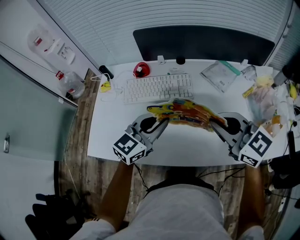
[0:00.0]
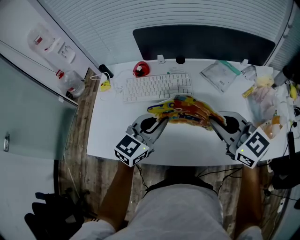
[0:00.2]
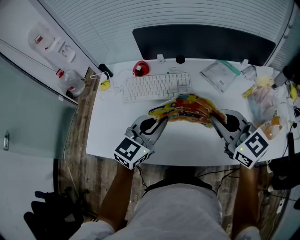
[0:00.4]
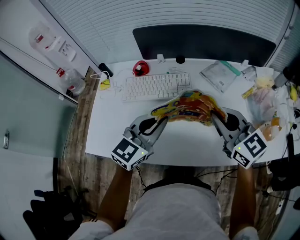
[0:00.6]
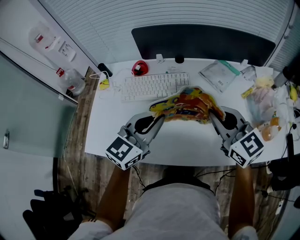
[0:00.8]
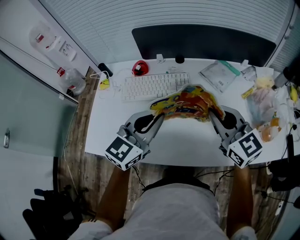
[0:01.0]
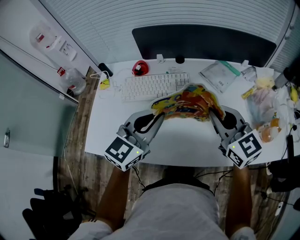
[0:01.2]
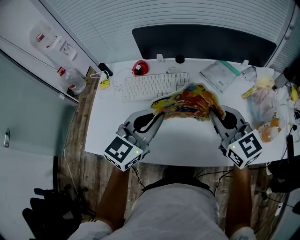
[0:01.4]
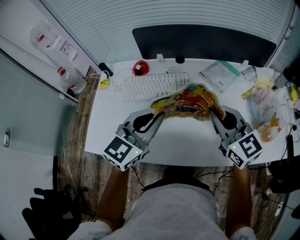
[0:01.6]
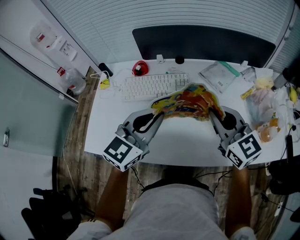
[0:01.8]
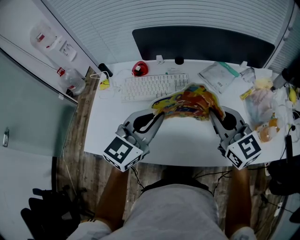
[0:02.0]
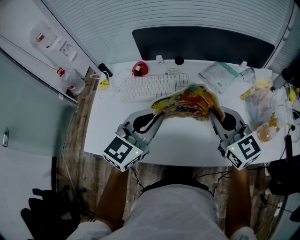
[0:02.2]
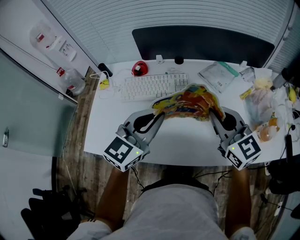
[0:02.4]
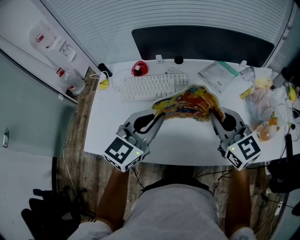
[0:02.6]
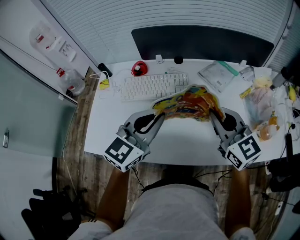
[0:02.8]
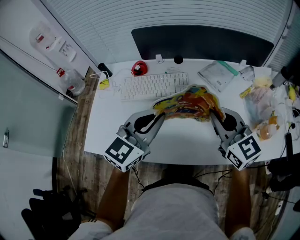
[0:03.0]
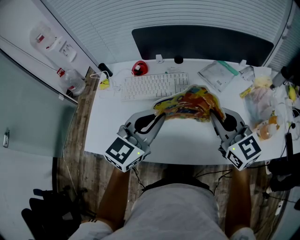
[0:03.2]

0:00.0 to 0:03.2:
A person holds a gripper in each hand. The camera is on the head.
0:00.0 to 0:01.6: The left gripper heads upward, covering approximately 5 cm.
0:01.6 to 0:03.2: Neither gripper changes place.

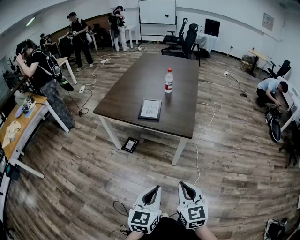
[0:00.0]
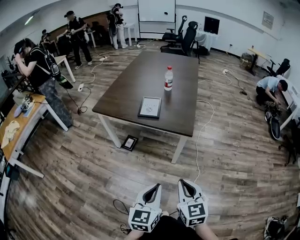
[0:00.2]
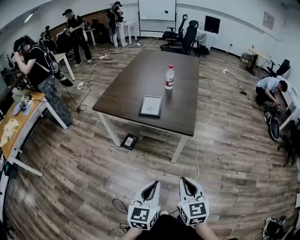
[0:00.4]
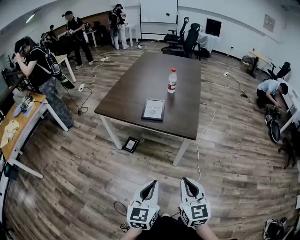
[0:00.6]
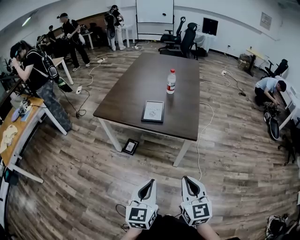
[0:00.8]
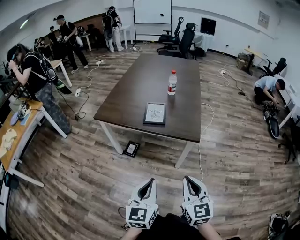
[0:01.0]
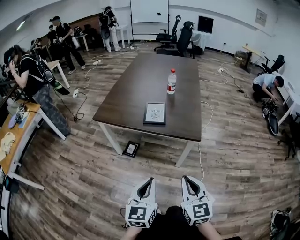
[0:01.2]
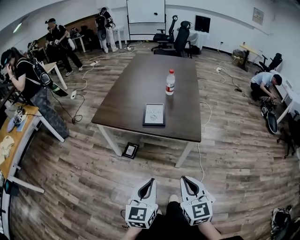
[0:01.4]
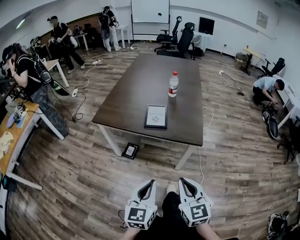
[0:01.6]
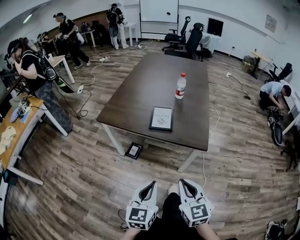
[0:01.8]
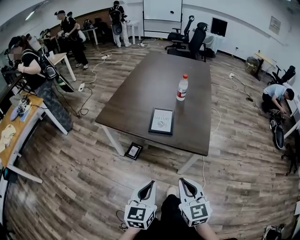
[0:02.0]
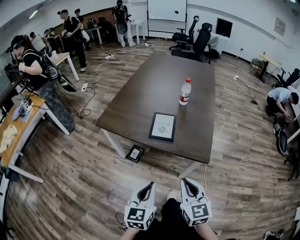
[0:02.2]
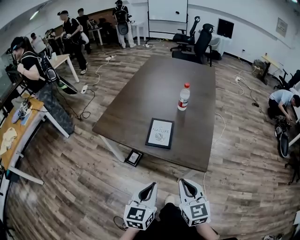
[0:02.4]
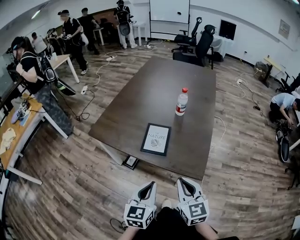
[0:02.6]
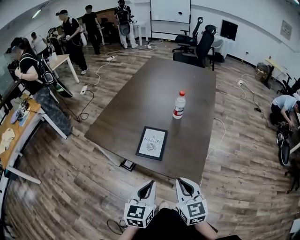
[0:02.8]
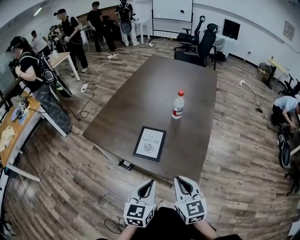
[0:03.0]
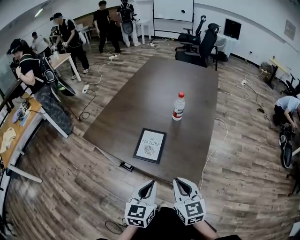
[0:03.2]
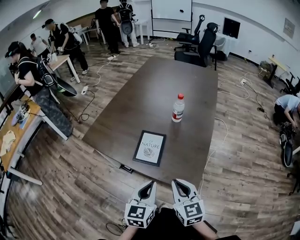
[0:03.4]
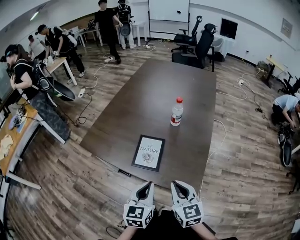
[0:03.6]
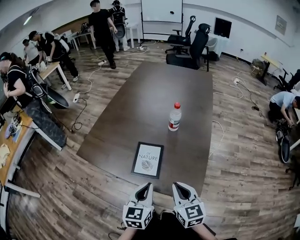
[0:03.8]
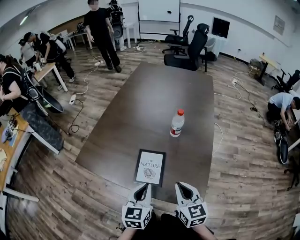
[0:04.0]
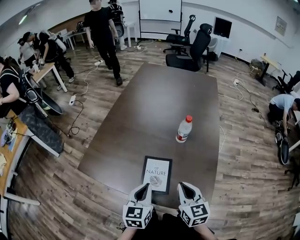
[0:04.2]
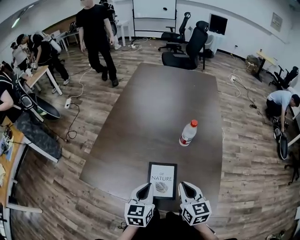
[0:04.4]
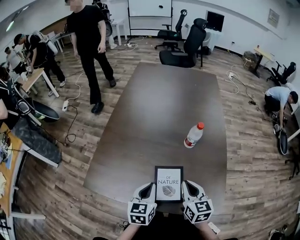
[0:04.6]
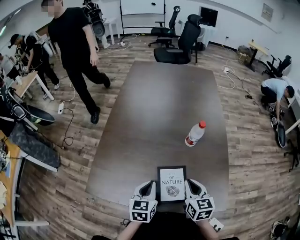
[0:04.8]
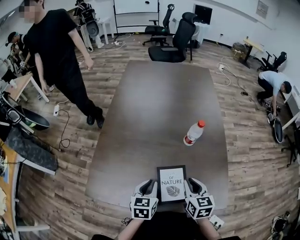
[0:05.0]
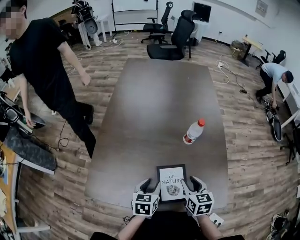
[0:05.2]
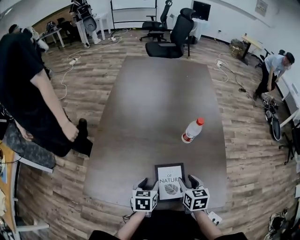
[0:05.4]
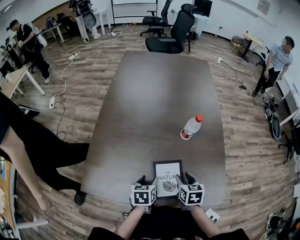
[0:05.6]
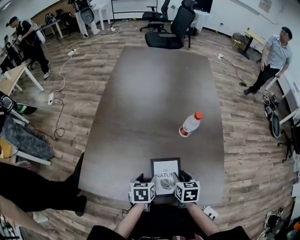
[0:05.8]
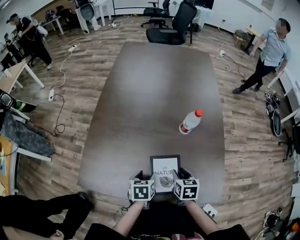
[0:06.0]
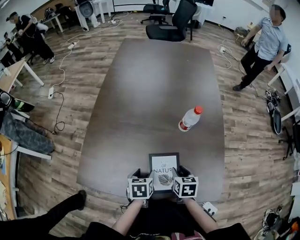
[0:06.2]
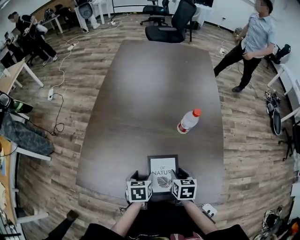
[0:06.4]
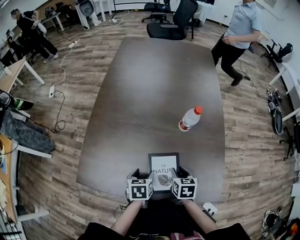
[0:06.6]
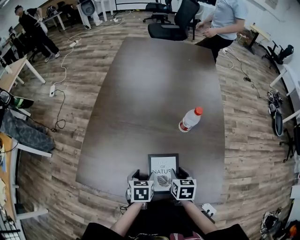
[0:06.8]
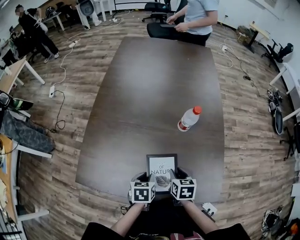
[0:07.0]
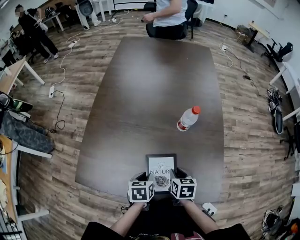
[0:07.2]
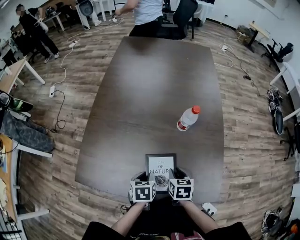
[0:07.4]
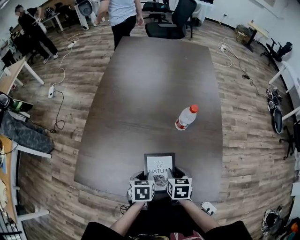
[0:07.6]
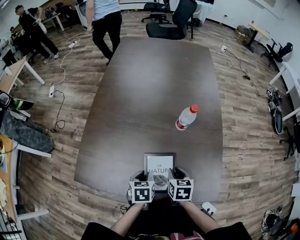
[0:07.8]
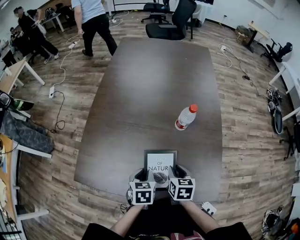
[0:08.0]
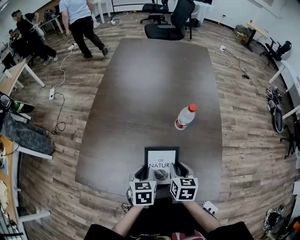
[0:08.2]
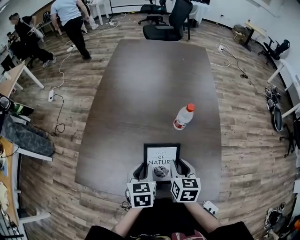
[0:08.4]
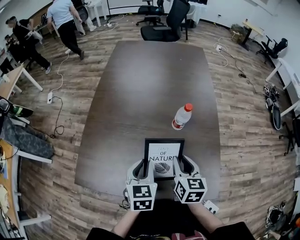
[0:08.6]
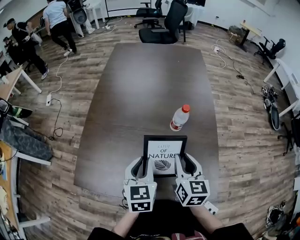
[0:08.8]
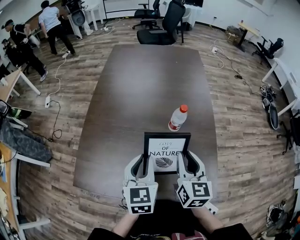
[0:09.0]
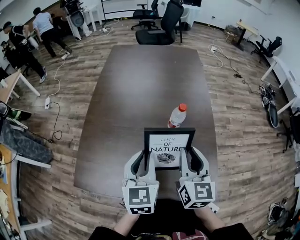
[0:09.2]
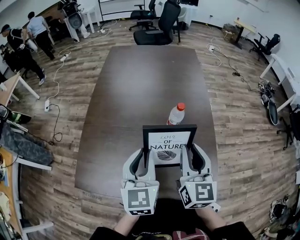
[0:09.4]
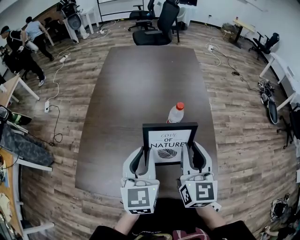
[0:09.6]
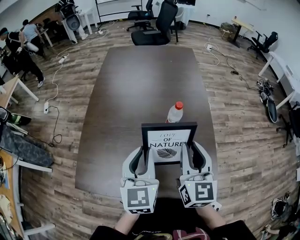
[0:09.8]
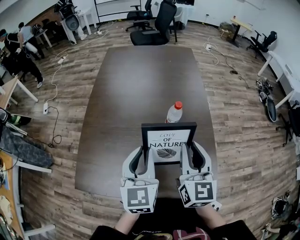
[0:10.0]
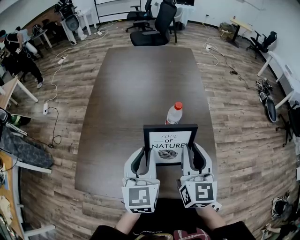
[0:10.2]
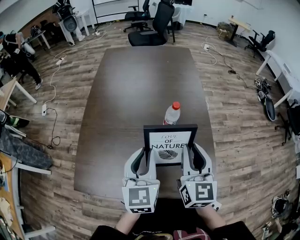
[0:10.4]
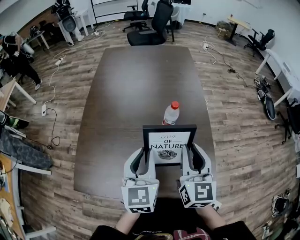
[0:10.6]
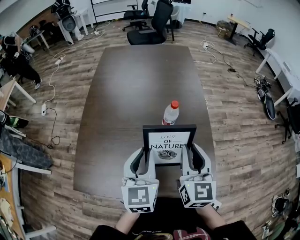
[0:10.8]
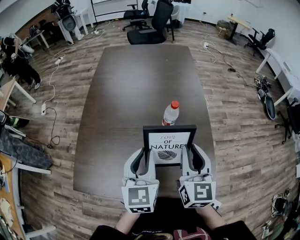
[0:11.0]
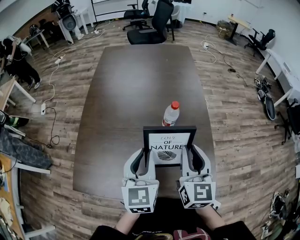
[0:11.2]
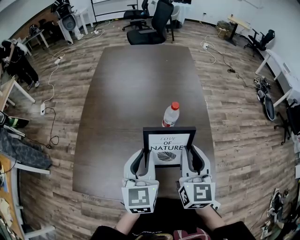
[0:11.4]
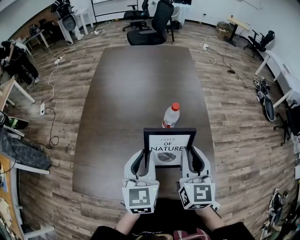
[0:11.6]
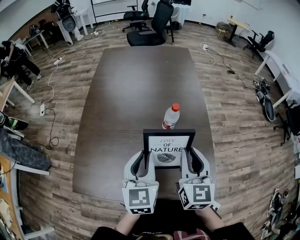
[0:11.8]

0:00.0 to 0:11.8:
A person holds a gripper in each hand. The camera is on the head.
0:00.0 to 0:01.4: Both grippers travel together to the left and forward, some 15 cm.
0:01.4 to 0:03.0: The left gripper goes some 30 cm forward and to the right. The right gripper is displaced forward by approximately 30 cm.
0:03.0 to 0:04.4: The right gripper heads forward, covering roughly 20 cm. The left gripper heads forward and to the left, covering about 25 cm.
0:04.4 to 0:06.0: Both grippers move downward and forward, approximately 15 cm. The left gripper points its fingers roughly 30 degrees further downward, and opens. The right gripper swivels approximately 30 degrees, and opens its fingers.
0:06.0 to 0:07.4: The left gripper closes up.
0:07.4 to 0:08.8: Both grippers travel together upward, about 20 cm. The right gripper changes its angle by about 30 degrees. Meanwhile the left gripper turns by some 30 degrees.
0:08.8 to 0:10.4: Both grippers move upward, about 10 cm.
0:10.4 to 0:11.8: The grippers make only small movements.

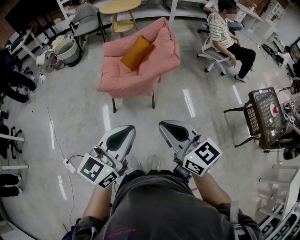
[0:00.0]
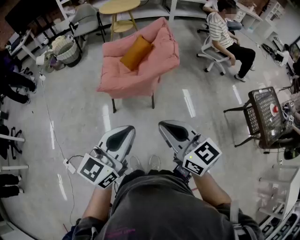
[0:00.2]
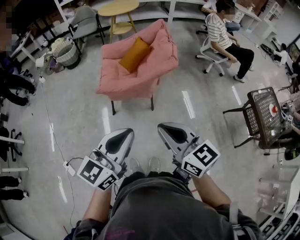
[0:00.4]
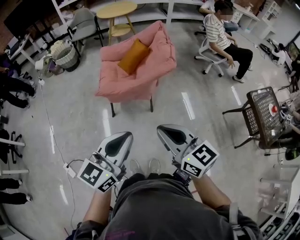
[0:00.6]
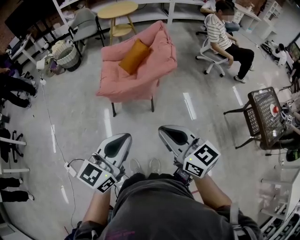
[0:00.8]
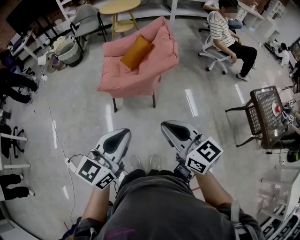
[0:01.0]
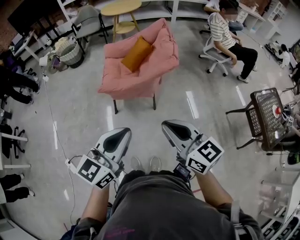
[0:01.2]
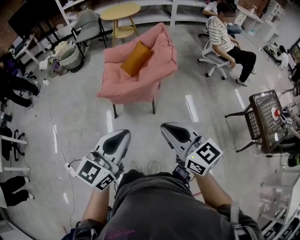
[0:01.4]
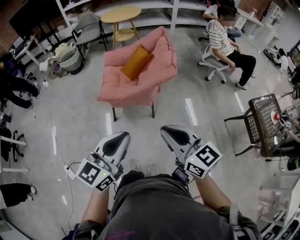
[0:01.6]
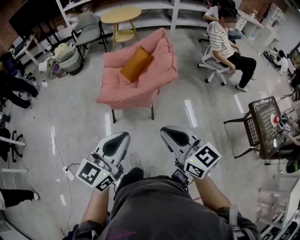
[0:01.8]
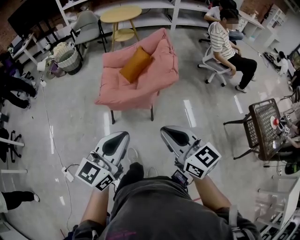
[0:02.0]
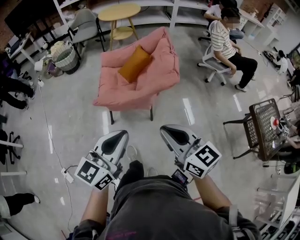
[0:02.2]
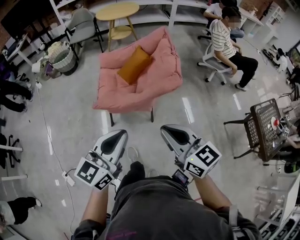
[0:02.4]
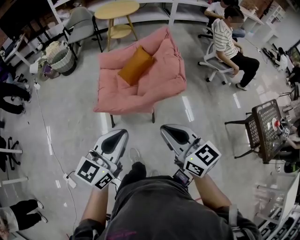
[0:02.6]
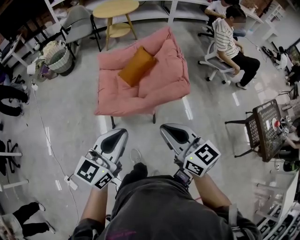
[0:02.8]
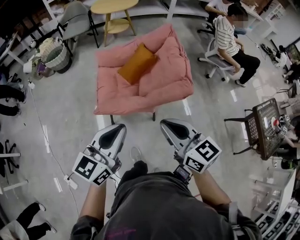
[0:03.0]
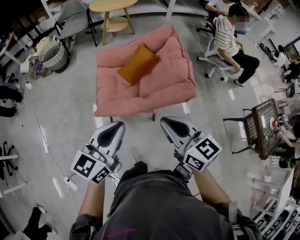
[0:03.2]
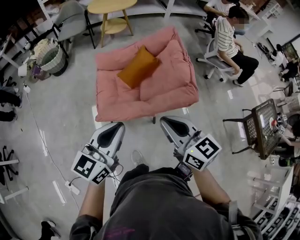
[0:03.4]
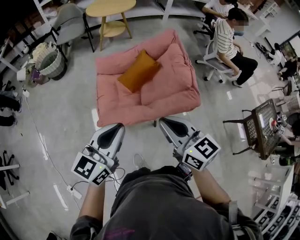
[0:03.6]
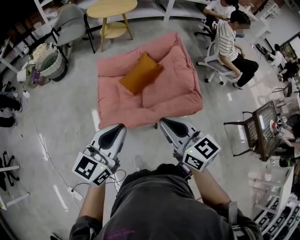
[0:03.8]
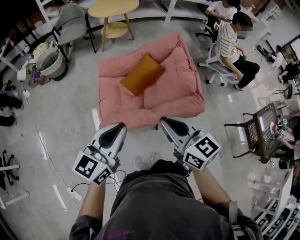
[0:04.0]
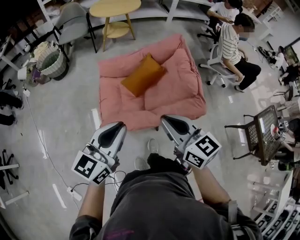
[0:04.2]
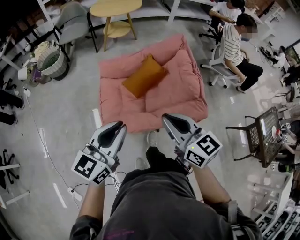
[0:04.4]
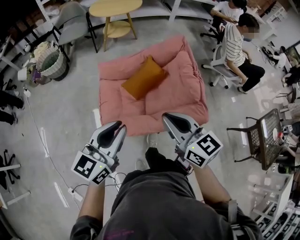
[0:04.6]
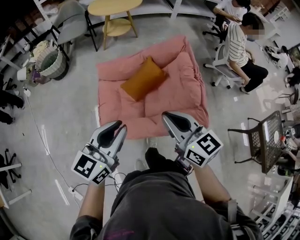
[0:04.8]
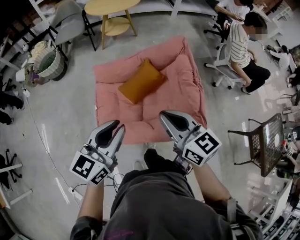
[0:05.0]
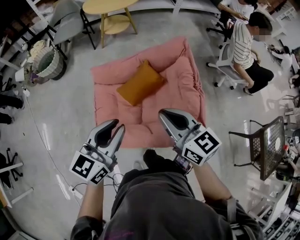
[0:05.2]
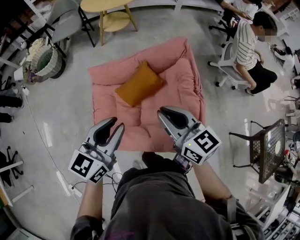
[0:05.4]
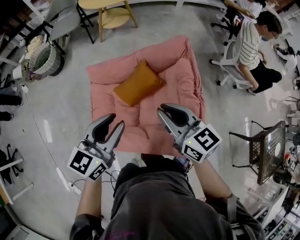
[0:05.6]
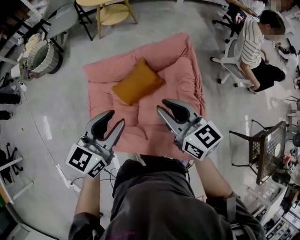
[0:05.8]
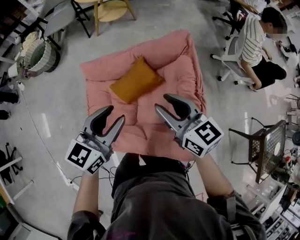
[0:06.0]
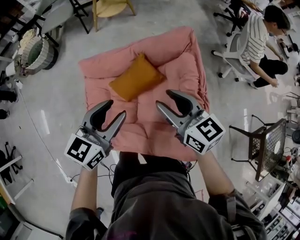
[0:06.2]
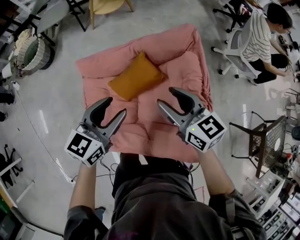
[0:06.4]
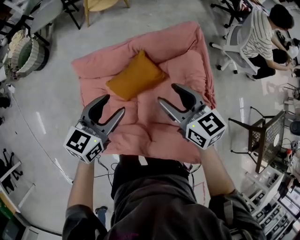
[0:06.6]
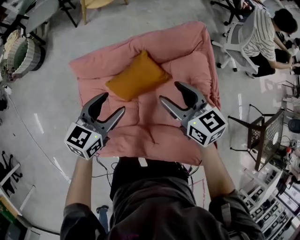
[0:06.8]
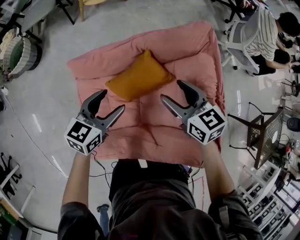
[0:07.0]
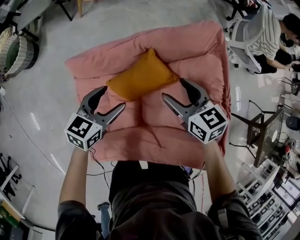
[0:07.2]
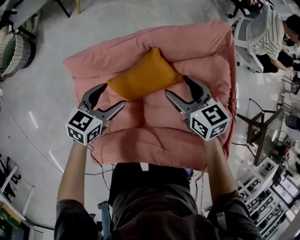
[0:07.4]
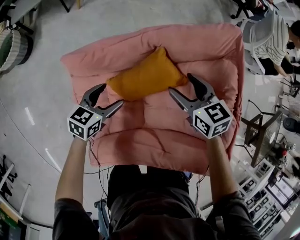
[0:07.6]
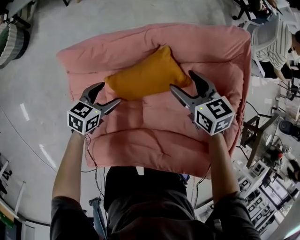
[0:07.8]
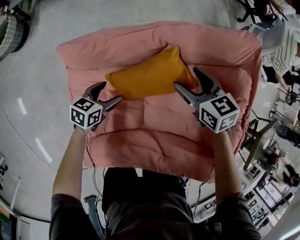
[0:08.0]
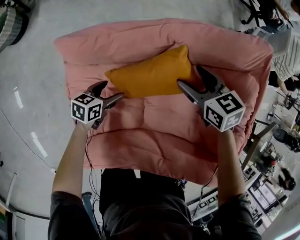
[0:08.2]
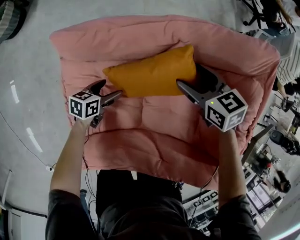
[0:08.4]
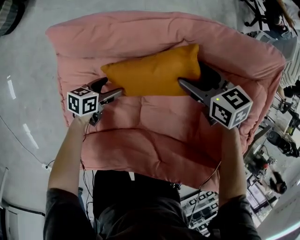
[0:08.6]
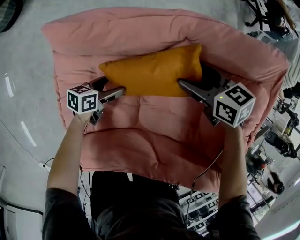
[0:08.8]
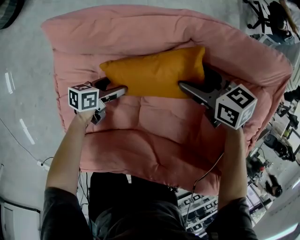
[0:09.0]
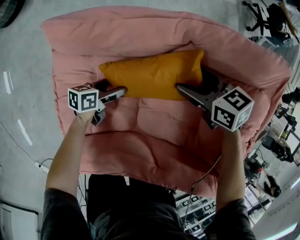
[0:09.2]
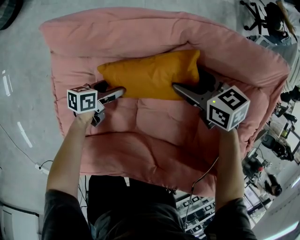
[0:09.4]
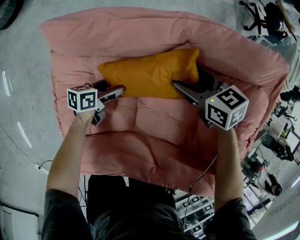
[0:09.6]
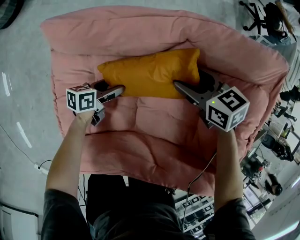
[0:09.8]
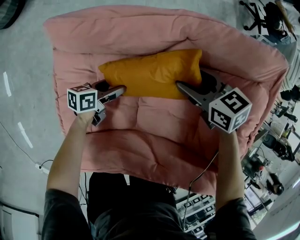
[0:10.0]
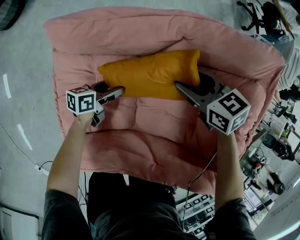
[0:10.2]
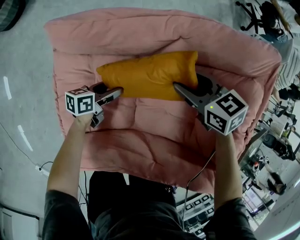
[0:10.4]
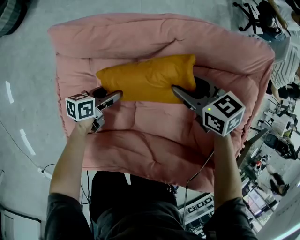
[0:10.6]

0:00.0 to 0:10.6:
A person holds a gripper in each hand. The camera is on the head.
0:00.0 to 0:01.6: The grippers move only a little.
0:01.6 to 0:03.0: The two grippers go about 25 cm forward.
0:03.0 to 0:04.6: Both grippers move forward, about 20 cm.
0:04.6 to 0:06.0: The left gripper travels forward and to the right by roughly 25 cm. Meanwhile the right gripper moves forward, some 25 cm, and opens.
0:06.0 to 0:07.6: The grippers both shift downward and forward by roughly 30 cm. The left gripper swivels approximately 30 degrees, and opens. The right gripper rotates some 30 degrees, and opens.
0:07.6 to 0:09.0: The right gripper goes some 10 cm downward, and swivels about 30 degrees; the left gripper travels downward by approximately 20 cm, and rotates some 40 degrees.
0:09.0 to 0:10.6: There are only small adjustments of the grippers.
